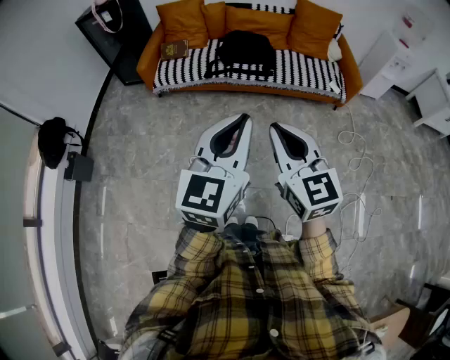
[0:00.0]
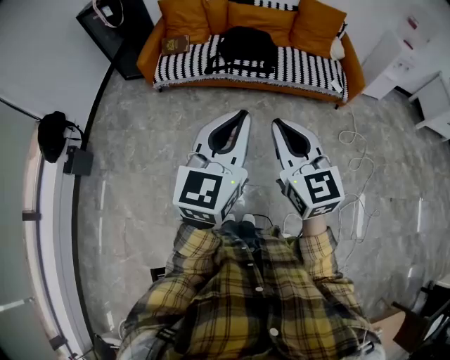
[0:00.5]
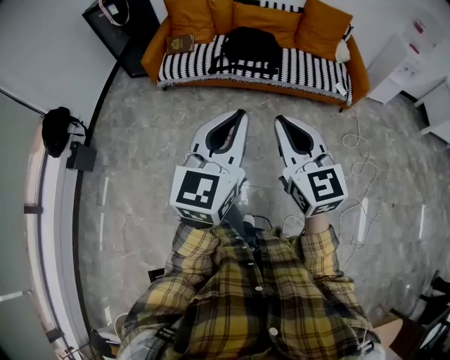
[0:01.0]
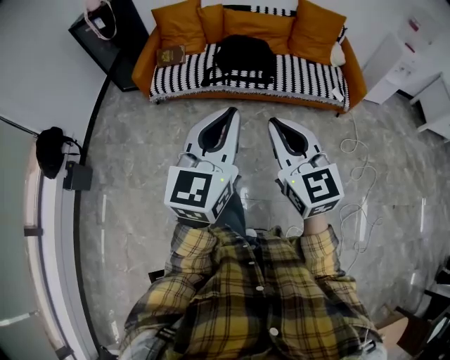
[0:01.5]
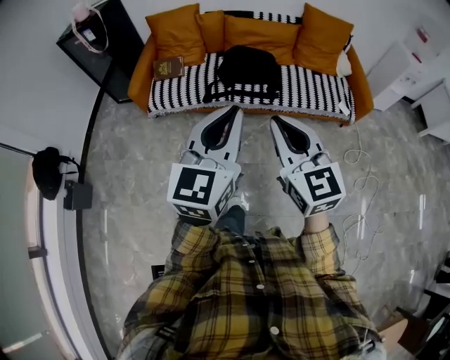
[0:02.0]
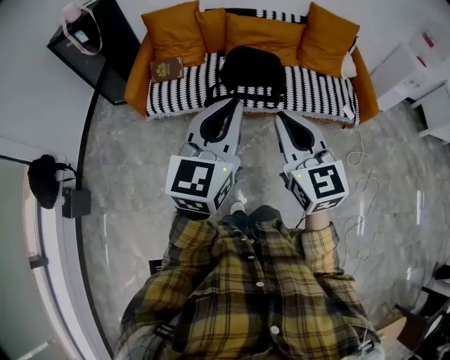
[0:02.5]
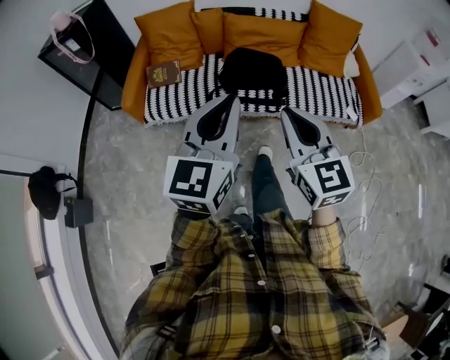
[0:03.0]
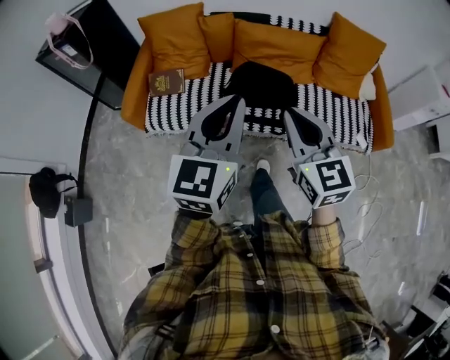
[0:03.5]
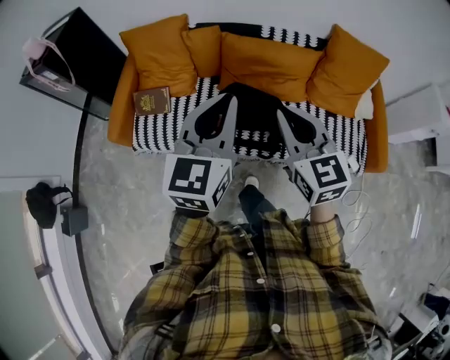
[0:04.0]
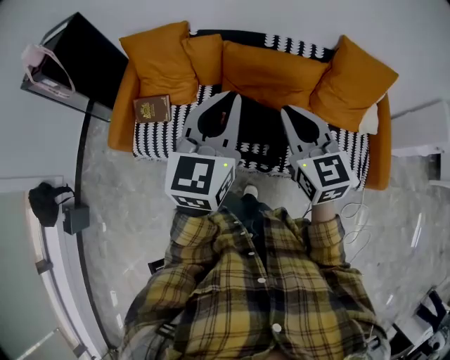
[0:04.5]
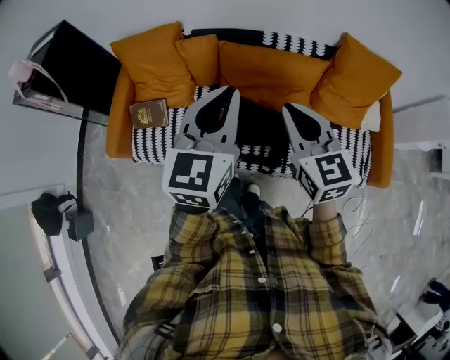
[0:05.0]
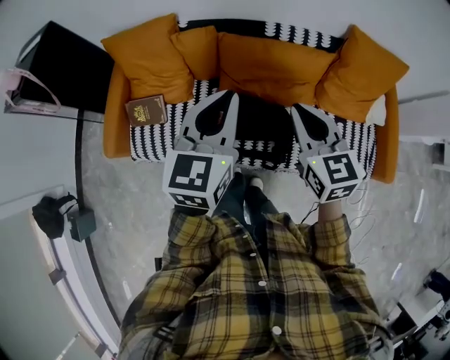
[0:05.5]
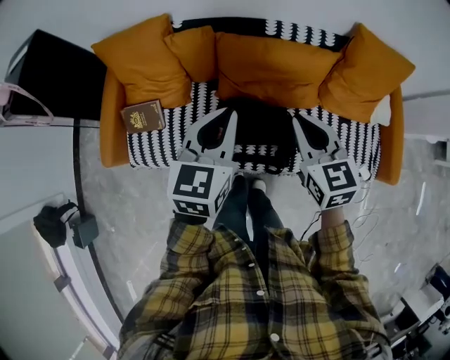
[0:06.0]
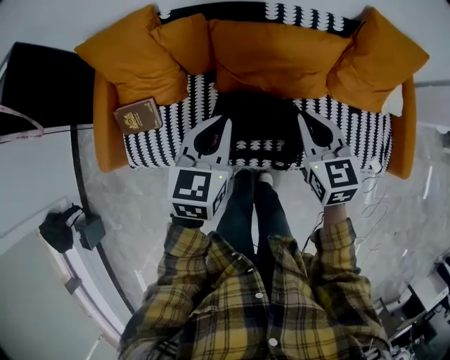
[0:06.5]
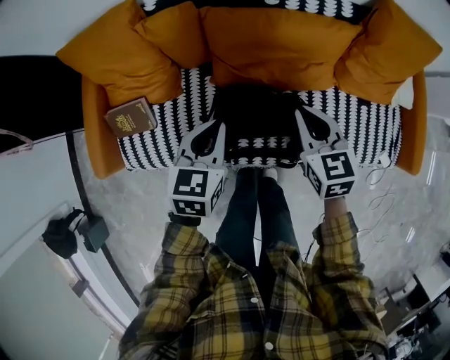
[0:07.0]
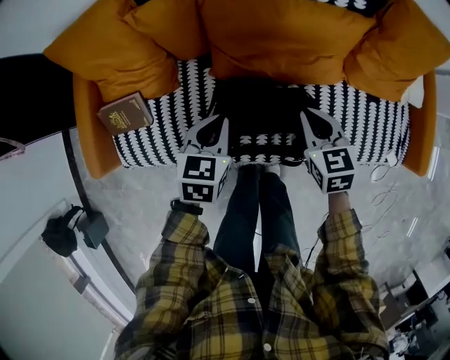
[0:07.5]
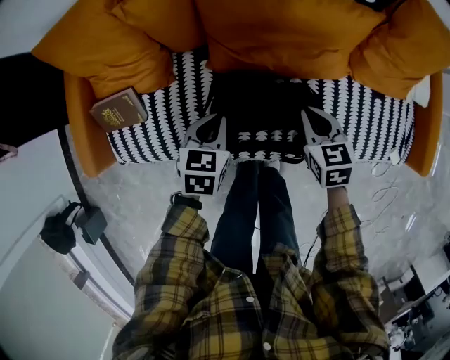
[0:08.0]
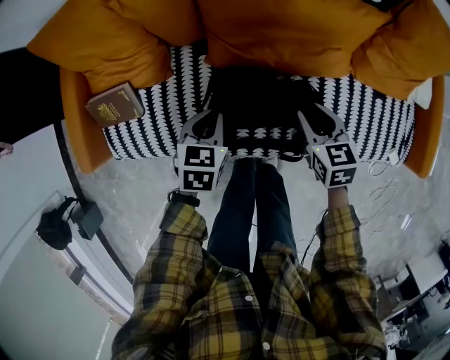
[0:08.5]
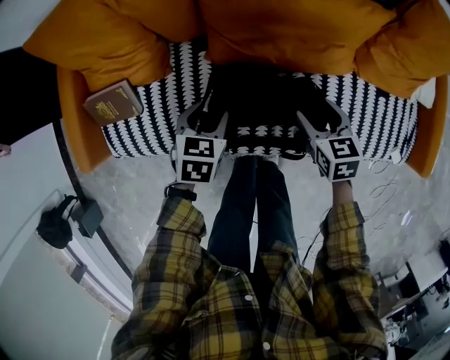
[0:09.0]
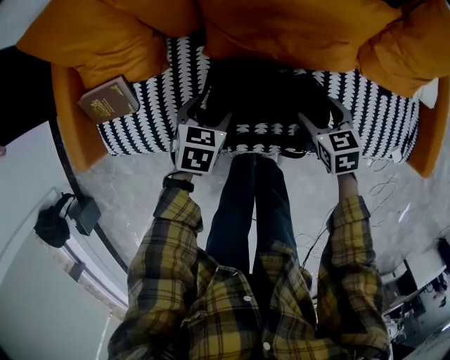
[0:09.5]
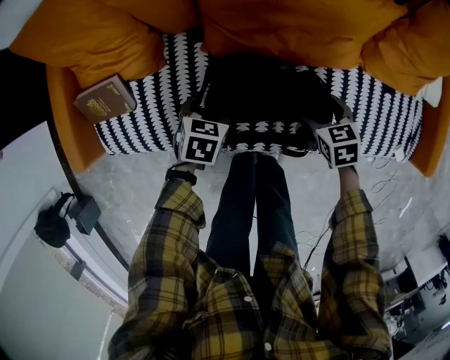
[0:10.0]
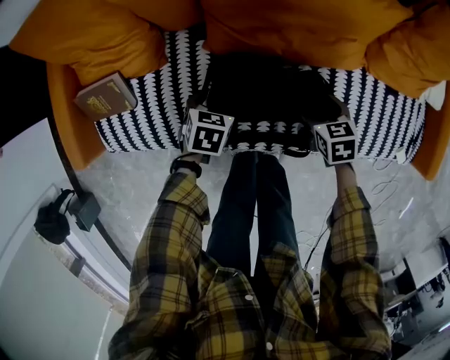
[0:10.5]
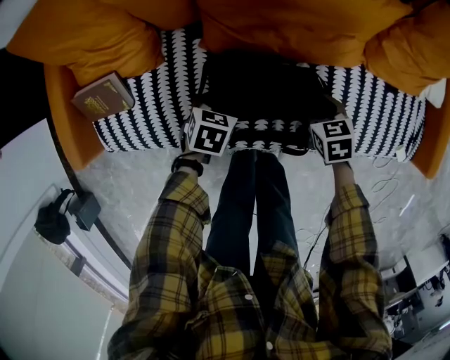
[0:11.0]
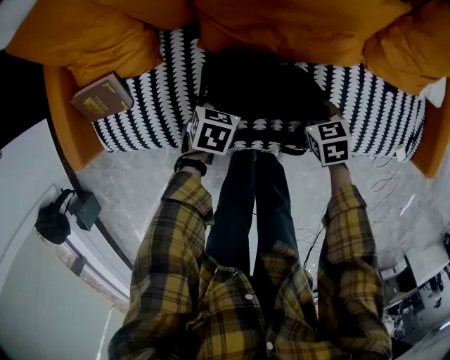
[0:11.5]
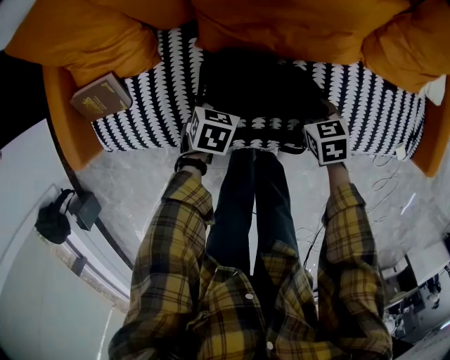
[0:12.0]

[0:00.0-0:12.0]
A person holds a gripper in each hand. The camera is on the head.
0:00.0 to 0:02.0: Both grippers move forward, roughly 25 cm.
0:02.0 to 0:04.0: The pair of grippers is taken forward, approximately 50 cm.
0:04.0 to 0:06.0: Both grippers travel together forward and downward, approximately 20 cm.
0:06.0 to 0:08.0: The grippers both shift downward by approximately 30 cm. The left gripper changes its angle by roughly 30 degrees. Meanwhile the right gripper turns by some 20 degrees.
0:08.0 to 0:10.0: Both grippers travel together downward, some 10 cm. The left gripper opens its fingers. Meanwhile the right gripper opens its fingers.
0:10.0 to 0:12.0: The left gripper closes its fingers; the right gripper closes its fingers.

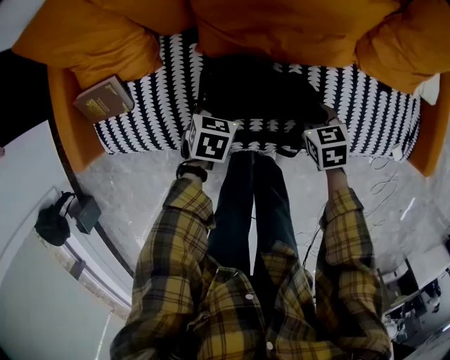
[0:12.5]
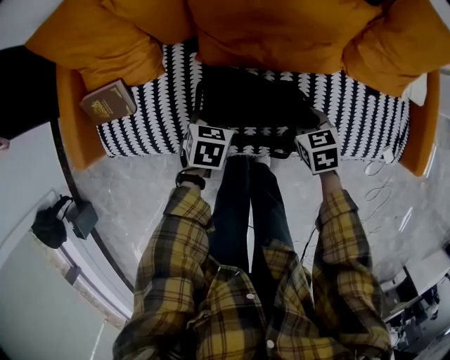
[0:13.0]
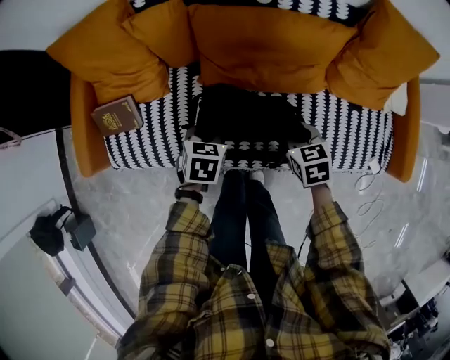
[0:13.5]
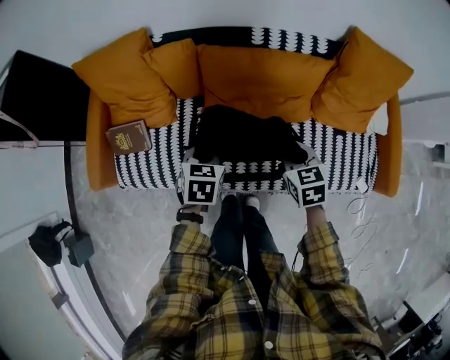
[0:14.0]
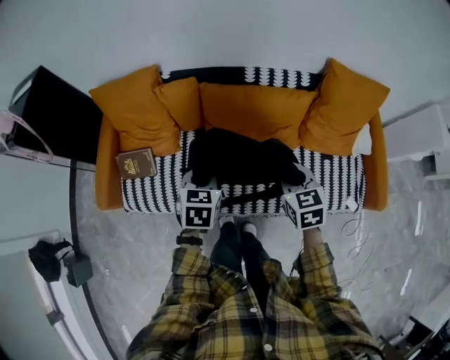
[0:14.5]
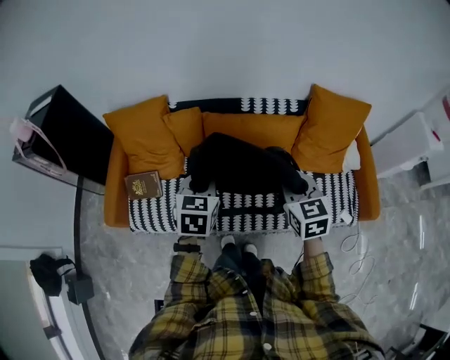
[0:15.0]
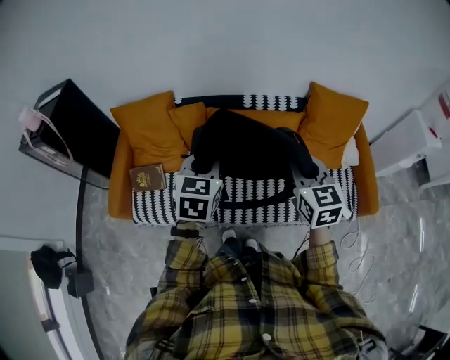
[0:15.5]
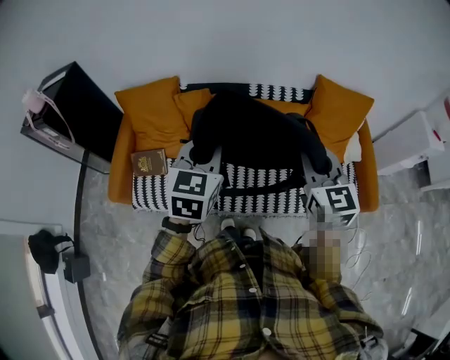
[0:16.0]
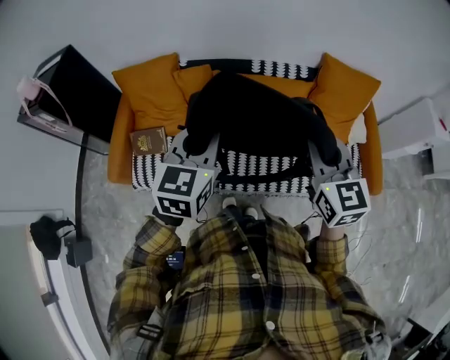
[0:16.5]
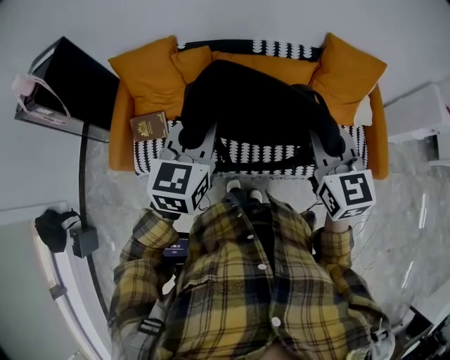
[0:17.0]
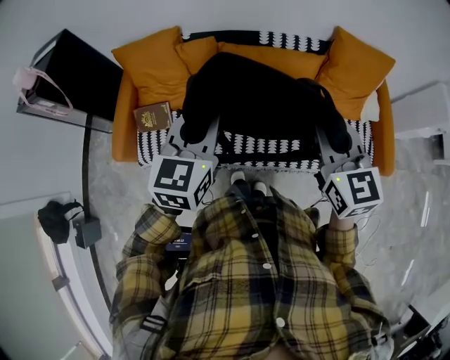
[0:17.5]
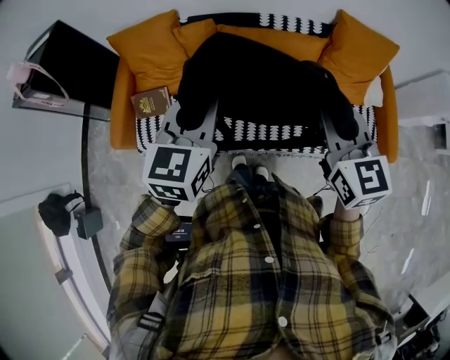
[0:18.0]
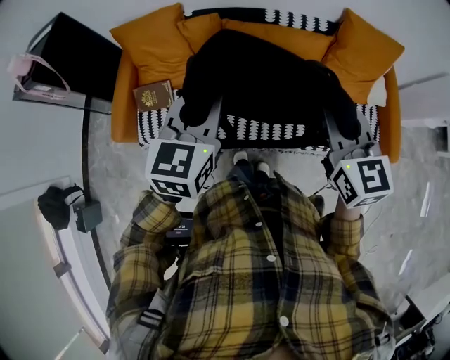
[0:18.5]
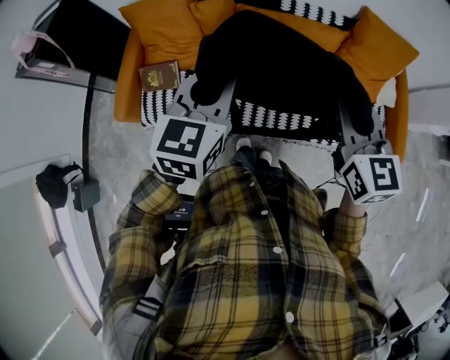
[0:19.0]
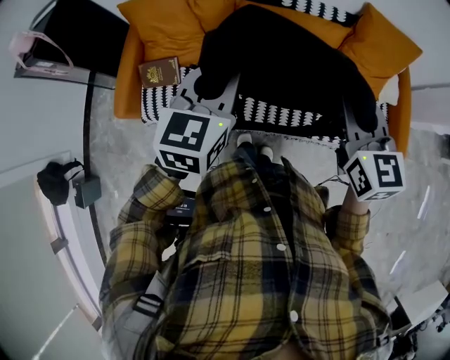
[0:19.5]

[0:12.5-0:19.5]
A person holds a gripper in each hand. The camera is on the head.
0:12.5 to 0:14.5: The two grippers go about 30 cm upward. The left gripper swivels approximately 20 degrees. The right gripper swivels about 20 degrees.
0:14.5 to 0:16.0: Both grippers travel together upward, about 25 cm. The left gripper rotates approximately 20 degrees. Meanwhile the right gripper rotates some 30 degrees.
0:16.0 to 0:19.5: There are only small adjustments of the grippers.

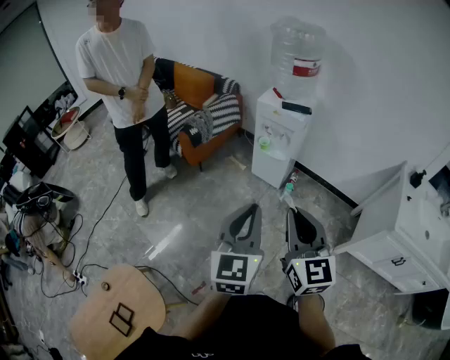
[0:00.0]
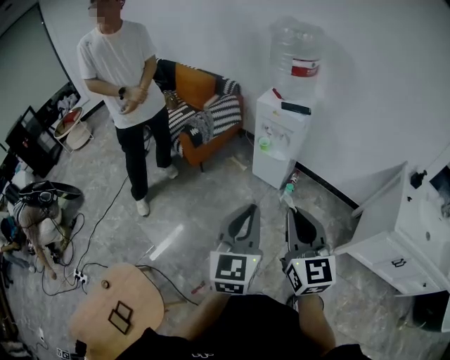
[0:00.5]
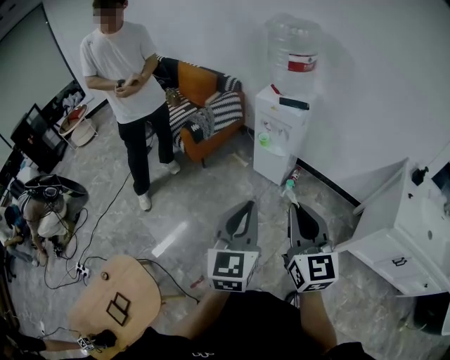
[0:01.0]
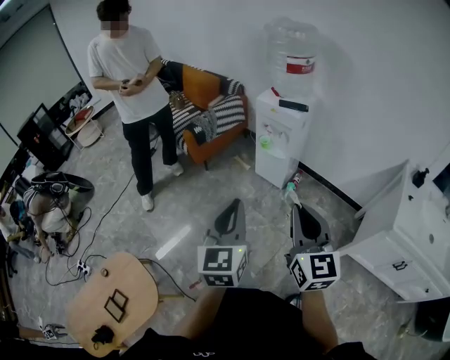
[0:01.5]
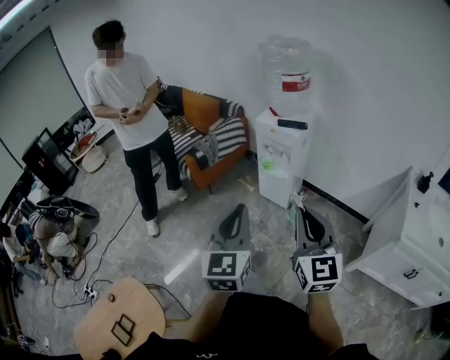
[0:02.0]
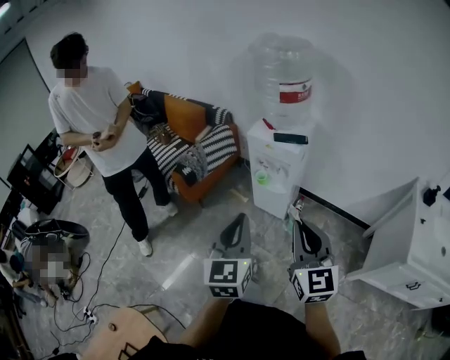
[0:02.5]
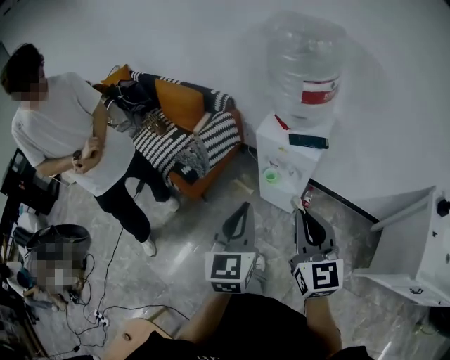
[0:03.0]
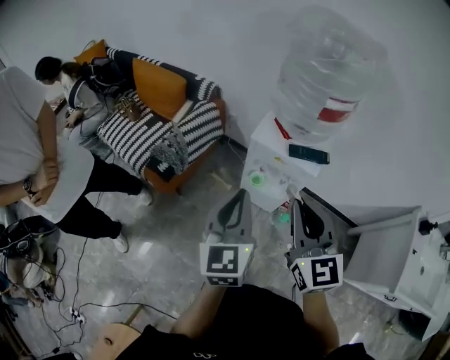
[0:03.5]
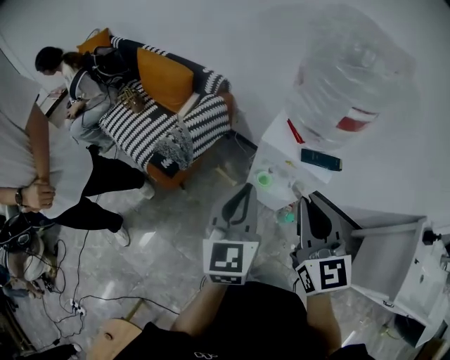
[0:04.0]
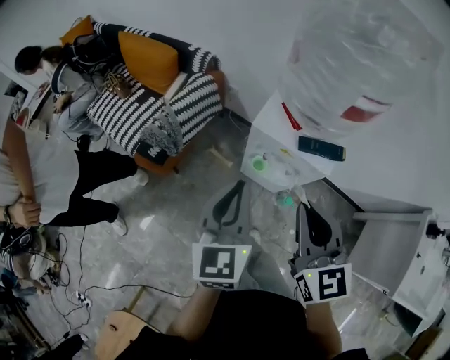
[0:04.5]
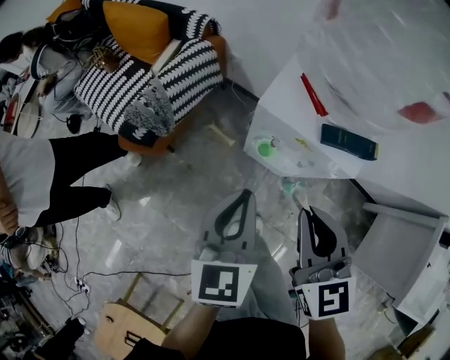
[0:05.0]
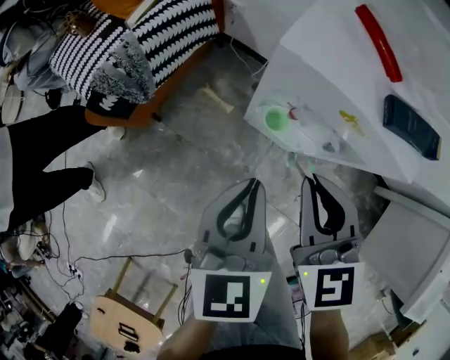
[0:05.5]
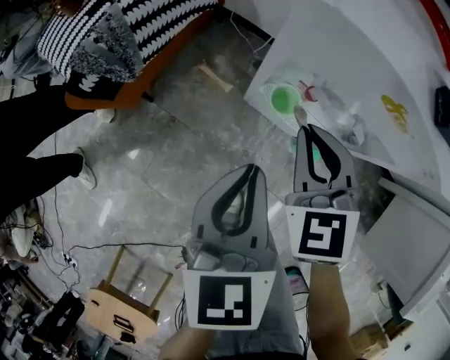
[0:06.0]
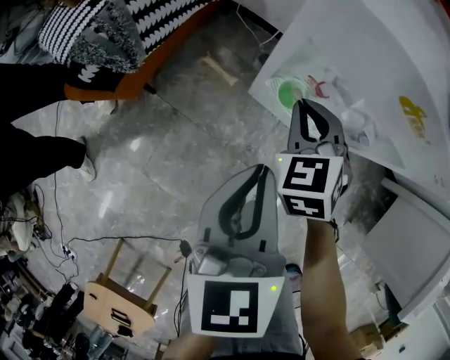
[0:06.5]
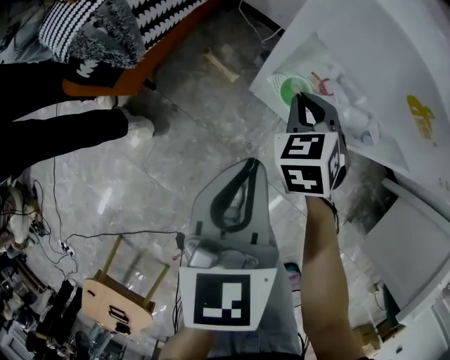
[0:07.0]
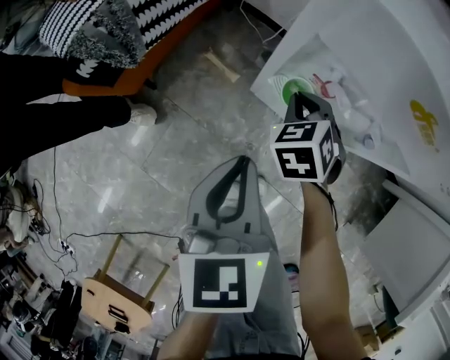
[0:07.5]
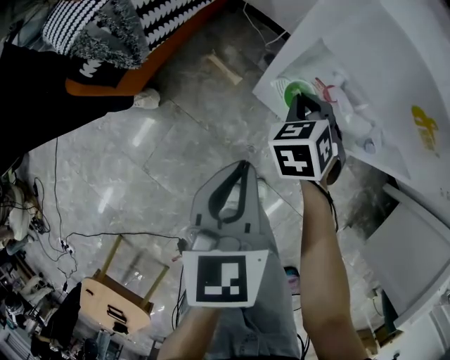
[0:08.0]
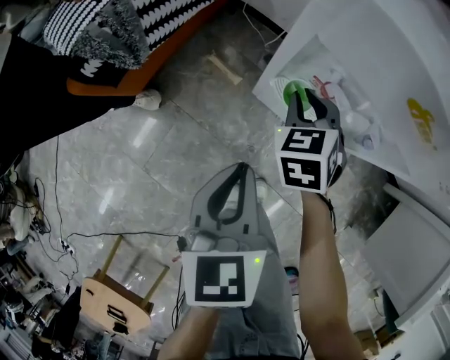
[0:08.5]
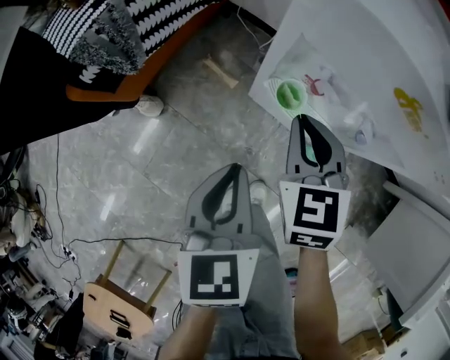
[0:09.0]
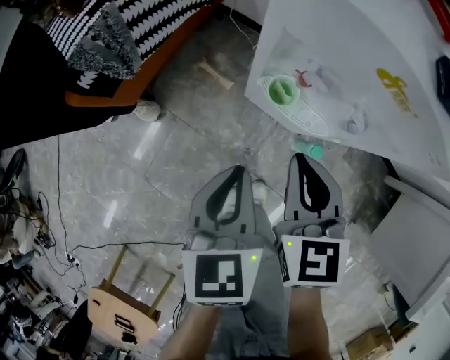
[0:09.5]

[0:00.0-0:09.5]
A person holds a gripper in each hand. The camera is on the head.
0:00.0 to 0:02.0: The right gripper moves to the right, roughly 10 cm.
0:02.0 to 0:04.0: Both grippers are carried forward, roughly 50 cm.
0:04.0 to 0:05.5: Both grippers travel together downward, roughly 30 cm. The right gripper swivels some 20 degrees; the left gripper rotates about 20 degrees.
0:05.5 to 0:07.5: The right gripper travels downward and forward by some 30 cm, and swivels roughly 30 degrees; the left gripper heads downward, covering roughly 10 cm.
0:07.5 to 0:09.5: The right gripper is displaced upward and backward by approximately 15 cm, and rotates roughly 30 degrees.
